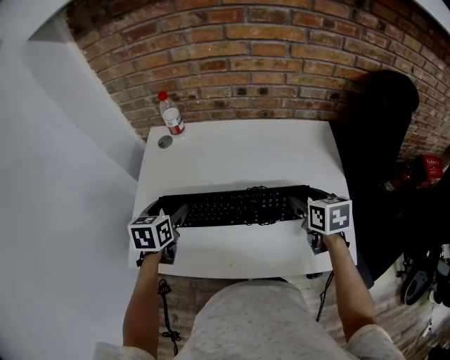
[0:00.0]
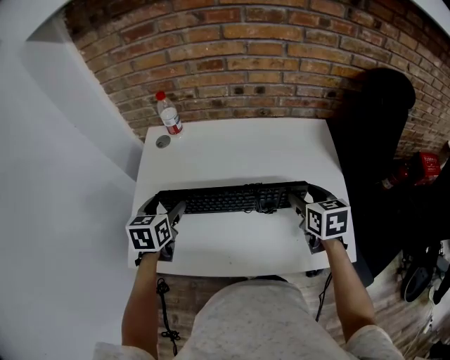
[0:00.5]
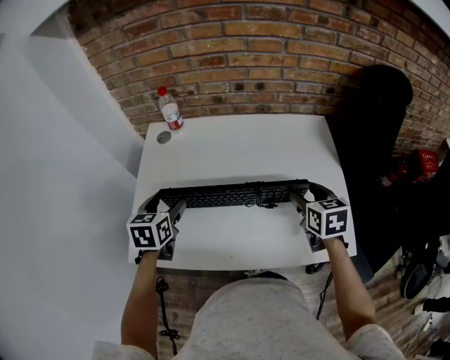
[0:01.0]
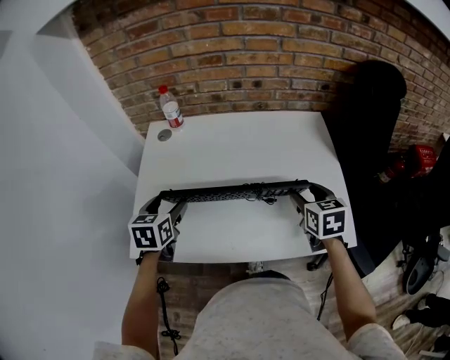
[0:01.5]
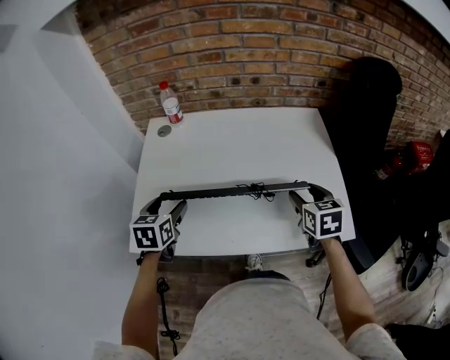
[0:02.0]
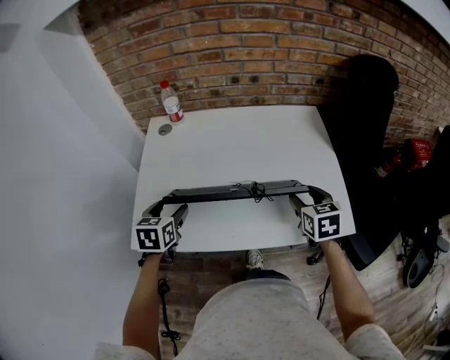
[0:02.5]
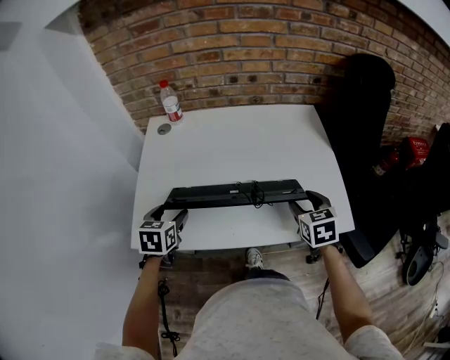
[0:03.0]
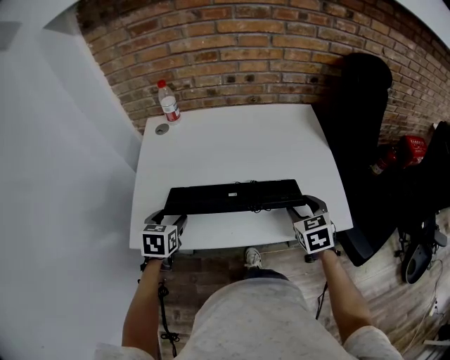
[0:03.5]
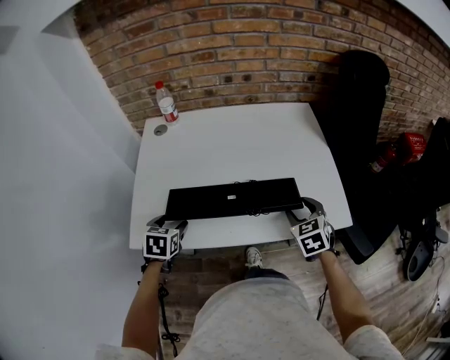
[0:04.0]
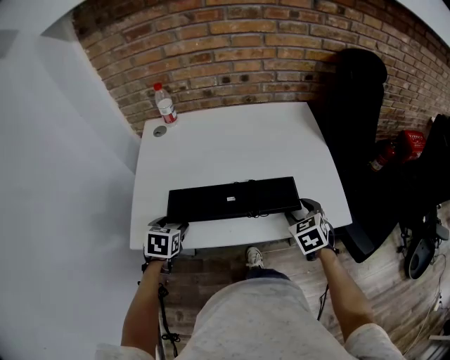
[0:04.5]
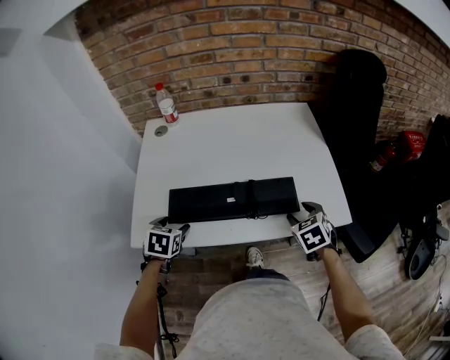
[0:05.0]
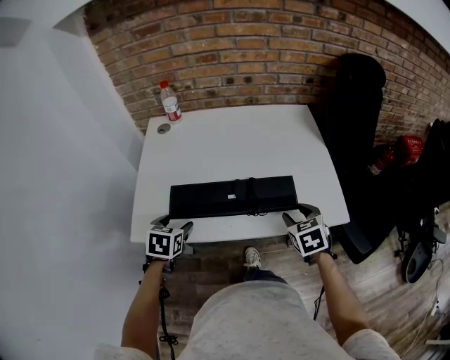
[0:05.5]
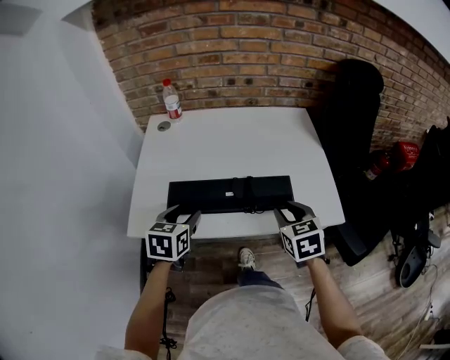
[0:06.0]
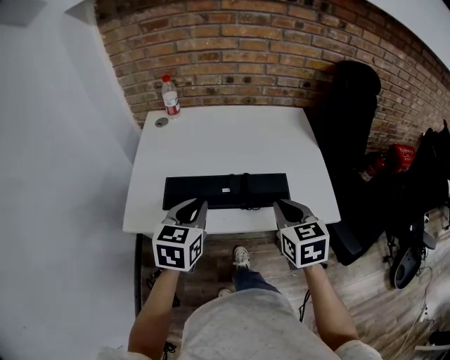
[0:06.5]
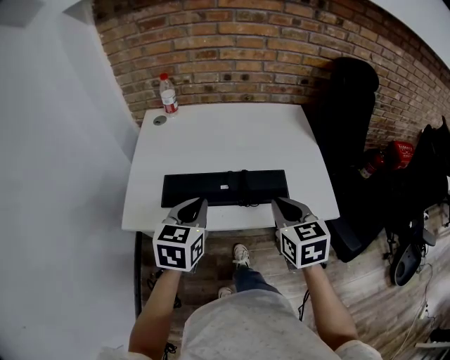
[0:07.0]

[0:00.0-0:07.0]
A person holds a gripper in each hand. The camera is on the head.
0:00.0 to 0:02.0: The two grippers go approximately 10 cm backward.
0:02.0 to 0:03.5: The left gripper travels downward and backward by about 5 cm. Meanwhile the right gripper travels backward by roughly 5 cm.
0:03.5 to 0:05.0: The right gripper shifts by about 5 cm.
0:05.0 to 0:07.0: The right gripper travels upward, to the left and backward by approximately 15 cm, rotates about 30 degrees, and closes up. The left gripper is displaced upward and to the right by some 20 cm, swivels about 30 degrees, and closes its fingers.

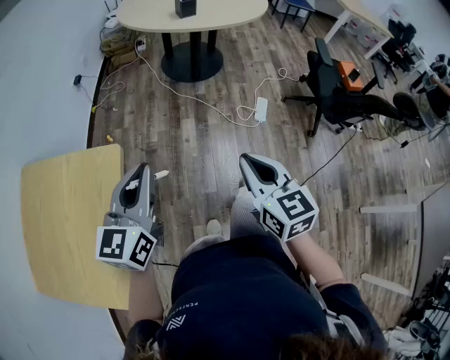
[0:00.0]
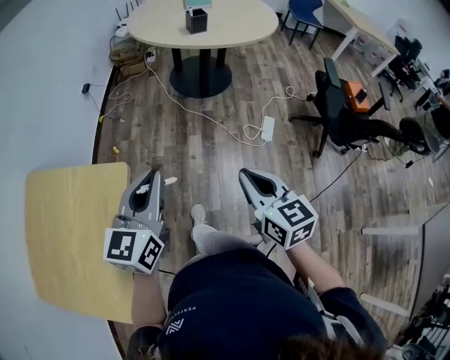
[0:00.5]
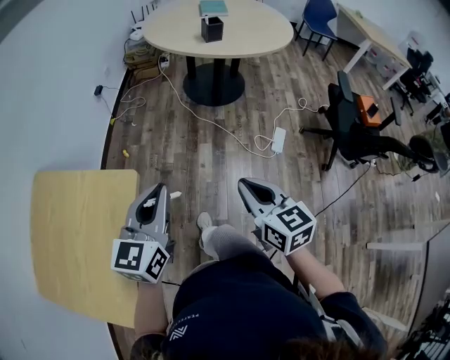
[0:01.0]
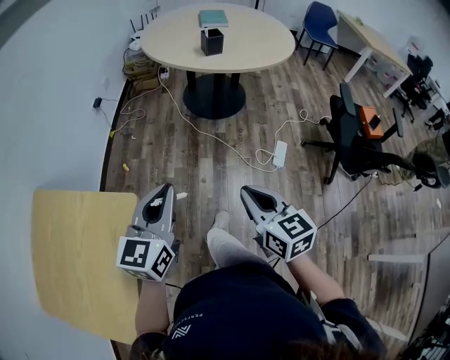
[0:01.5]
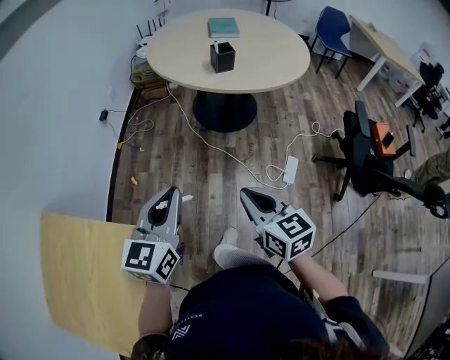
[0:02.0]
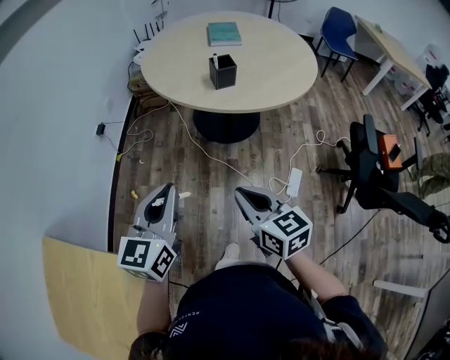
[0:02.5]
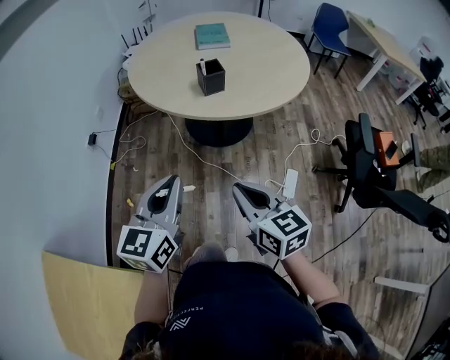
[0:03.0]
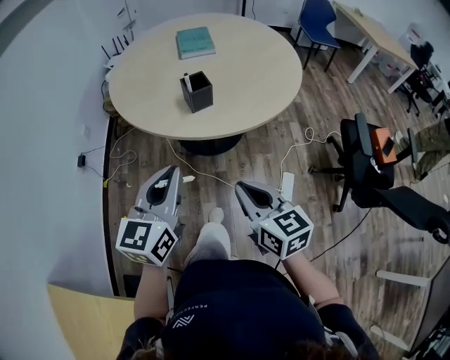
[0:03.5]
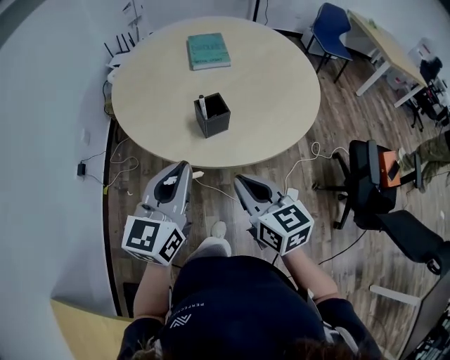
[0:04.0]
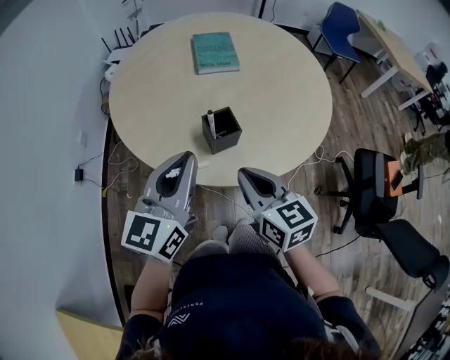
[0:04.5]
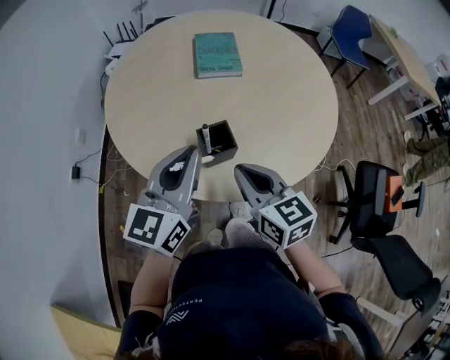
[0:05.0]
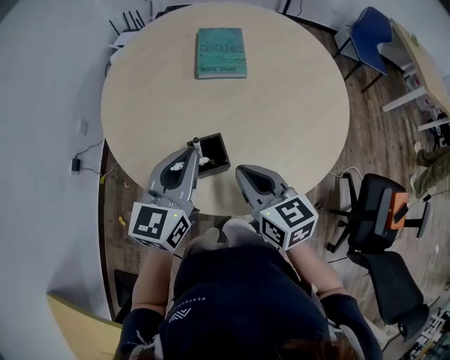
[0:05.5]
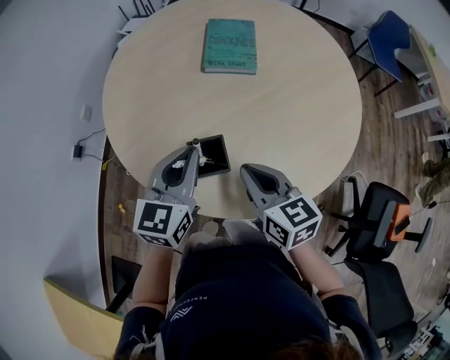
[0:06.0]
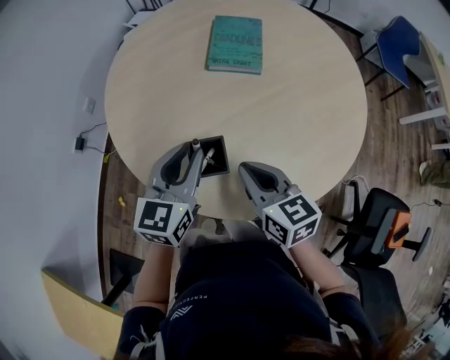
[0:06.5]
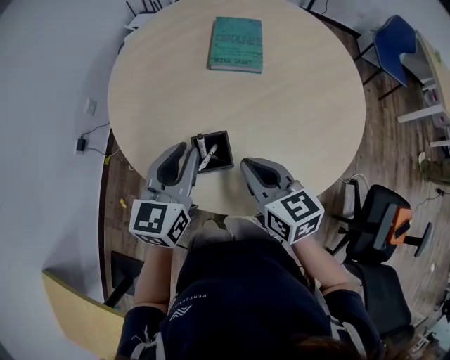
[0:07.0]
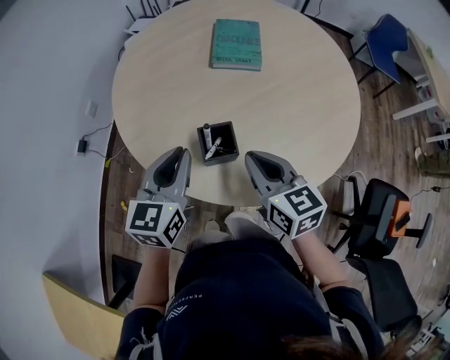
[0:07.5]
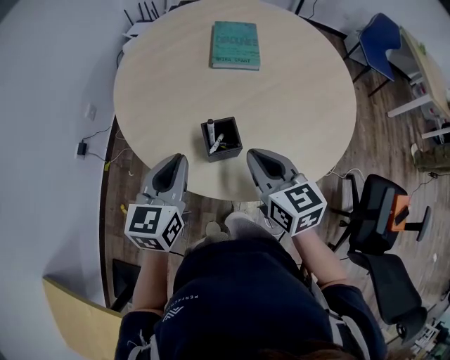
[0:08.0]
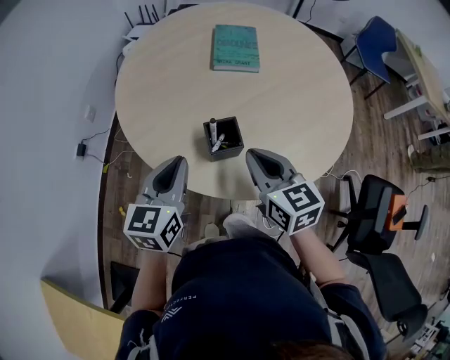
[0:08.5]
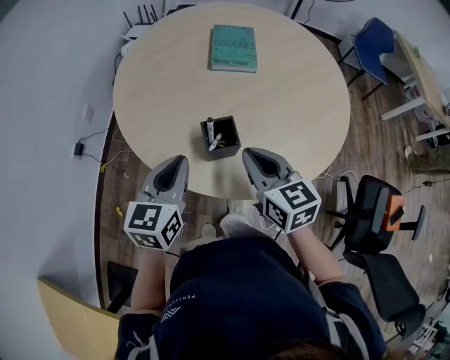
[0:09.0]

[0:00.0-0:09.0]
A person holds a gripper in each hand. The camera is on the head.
0:00.0 to 0:02.0: The grippers both shift forward by some 25 cm.
0:02.0 to 0:04.5: Both grippers are carried forward, some 50 cm.
0:04.5 to 0:07.0: The right gripper heads forward and to the right, covering some 15 cm; the left gripper moves forward, downward and to the right, approximately 15 cm, and rotates some 20 degrees.
0:07.0 to 0:09.0: The left gripper shifts roughly 10 cm backward and to the left.

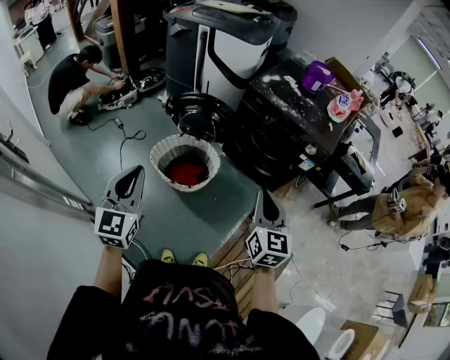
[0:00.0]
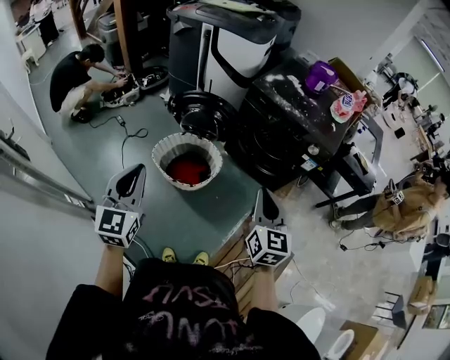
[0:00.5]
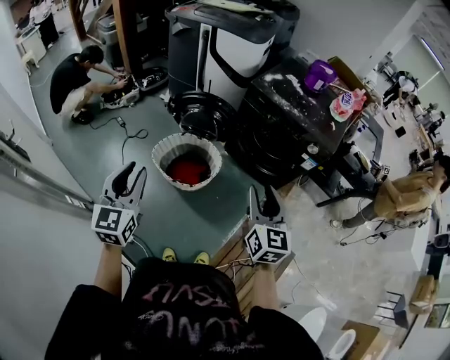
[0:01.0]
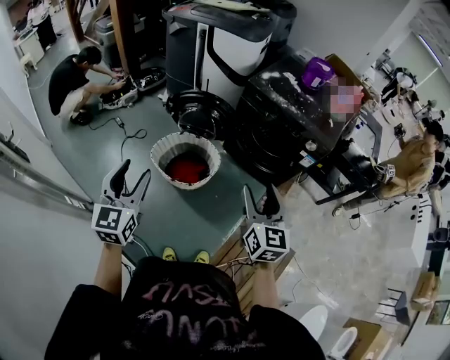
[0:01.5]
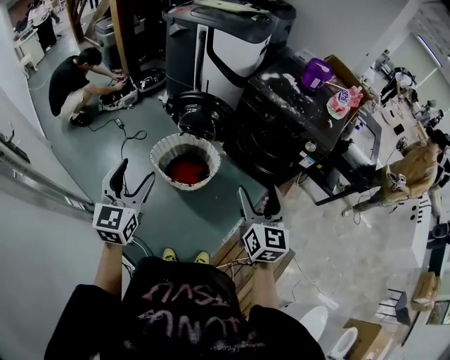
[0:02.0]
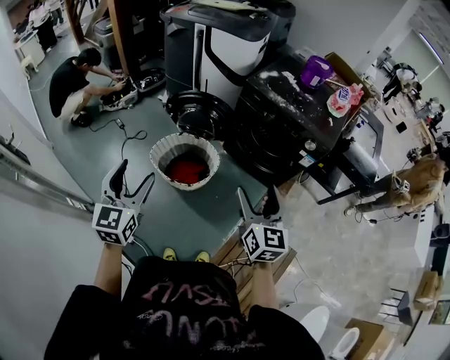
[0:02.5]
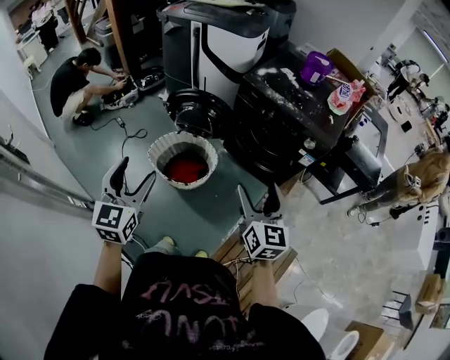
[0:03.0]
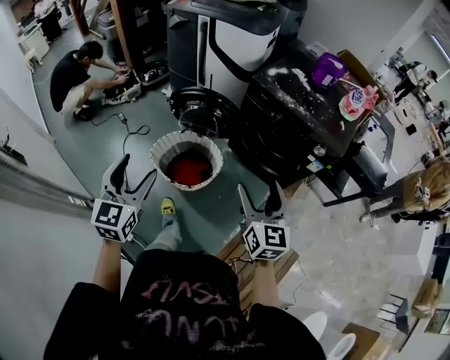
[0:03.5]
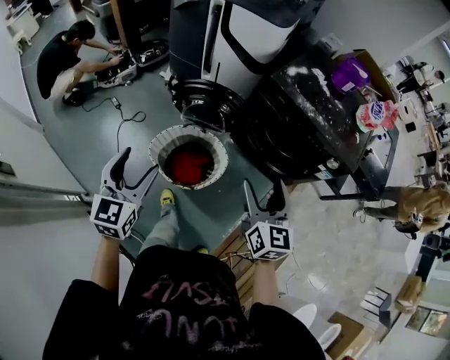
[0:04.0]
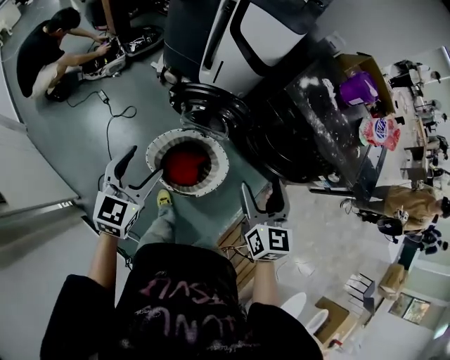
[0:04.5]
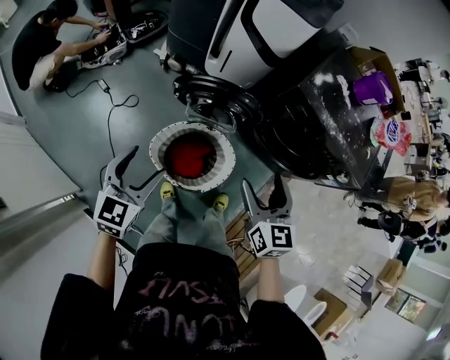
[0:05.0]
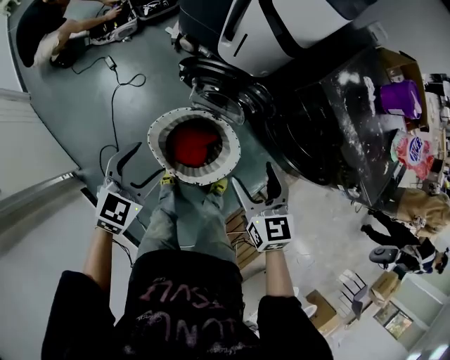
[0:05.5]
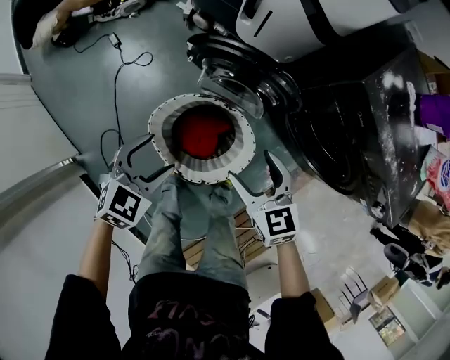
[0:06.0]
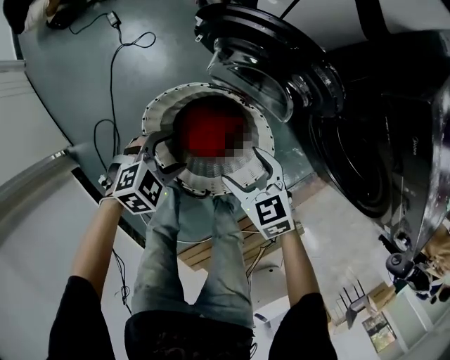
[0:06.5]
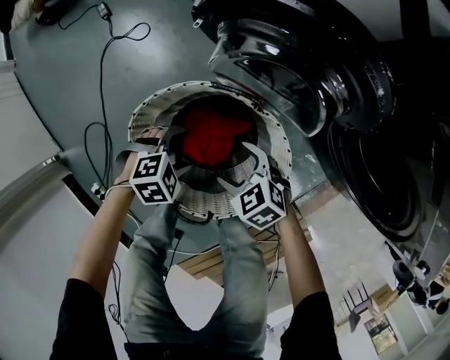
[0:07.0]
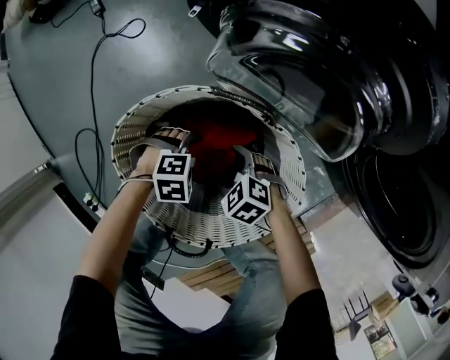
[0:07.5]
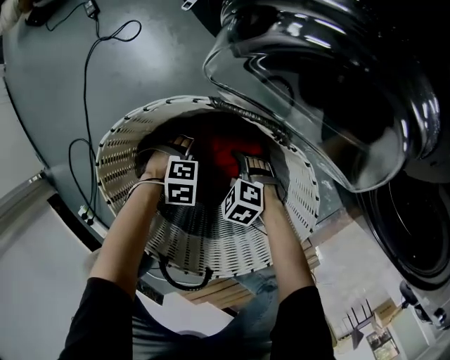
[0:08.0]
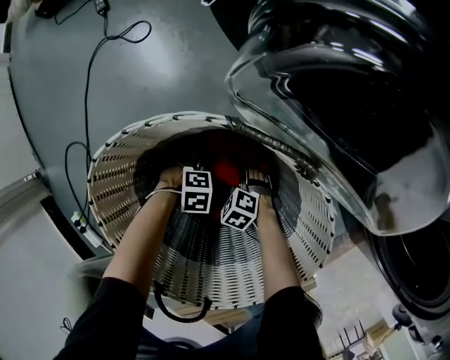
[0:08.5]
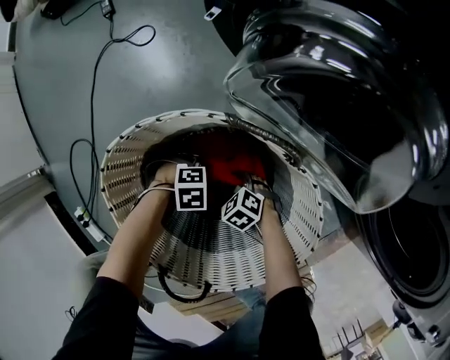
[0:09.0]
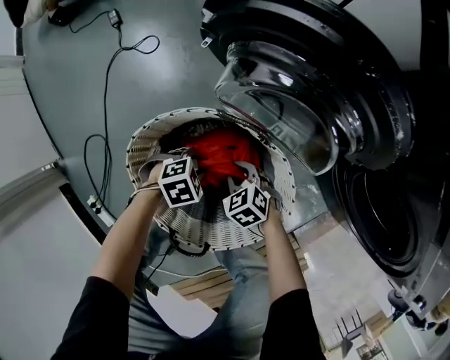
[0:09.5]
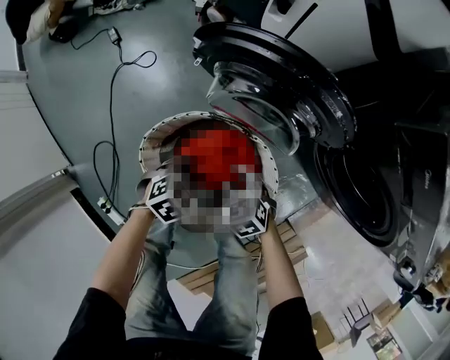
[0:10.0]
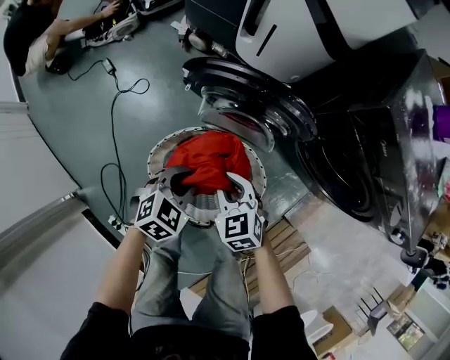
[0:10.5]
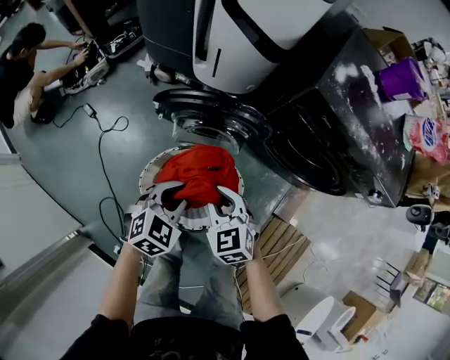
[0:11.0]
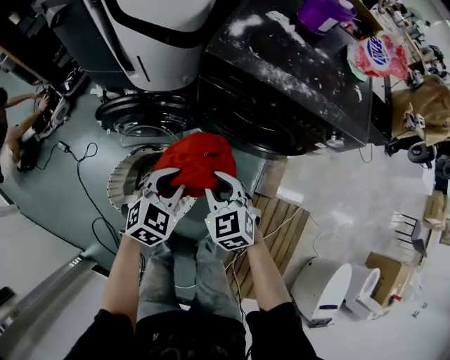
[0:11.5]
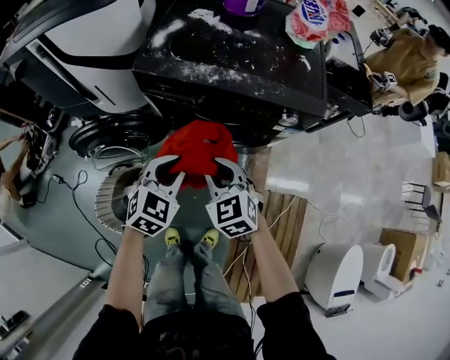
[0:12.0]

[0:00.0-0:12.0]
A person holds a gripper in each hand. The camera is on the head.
0:00.0 to 0:02.0: The left gripper opens; the right gripper opens up.
0:02.0 to 0:04.0: The right gripper goes some 15 cm forward, while the left gripper travels forward and downward by some 20 cm.
0:04.0 to 0:06.0: The left gripper travels downward and forward by roughly 30 cm, and changes its angle by roughly 30 degrees. Meanwhile the right gripper goes about 35 cm downward, forward and to the left, and rotates approximately 40 degrees.
0:06.0 to 0:08.0: The two grippers go about 60 cm downward. The right gripper points its fingers about 30 degrees further downward. The left gripper tilts its fingers about 30 degrees downward.
0:08.0 to 0:10.0: Both grippers move upward, approximately 30 cm. The right gripper changes its angle by some 40 degrees, and closes up. The left gripper changes its angle by some 40 degrees, and closes.
0:10.0 to 0:12.0: The two grippers go about 35 cm upward. The left gripper turns by roughly 40 degrees. The right gripper turns by about 50 degrees.
